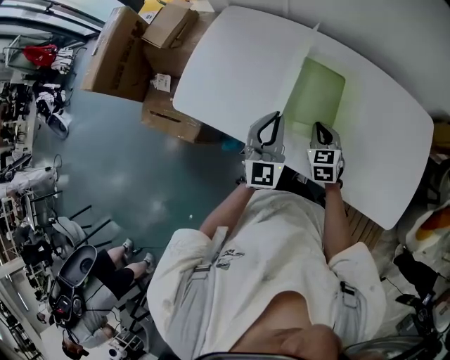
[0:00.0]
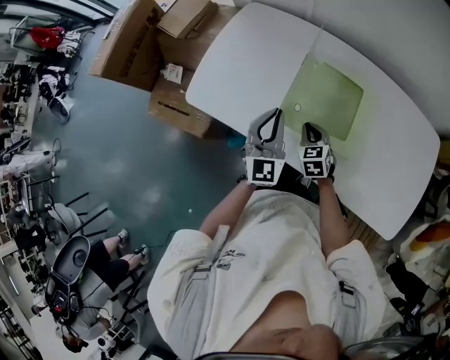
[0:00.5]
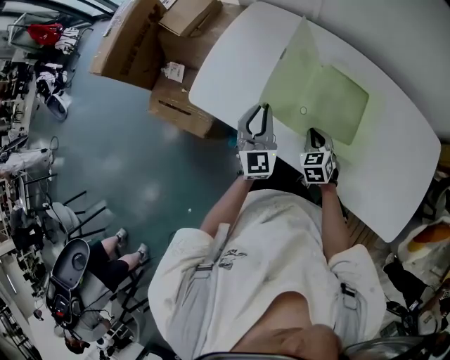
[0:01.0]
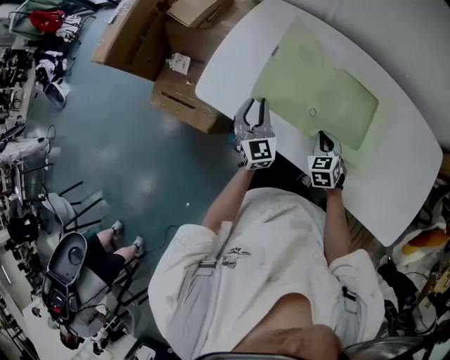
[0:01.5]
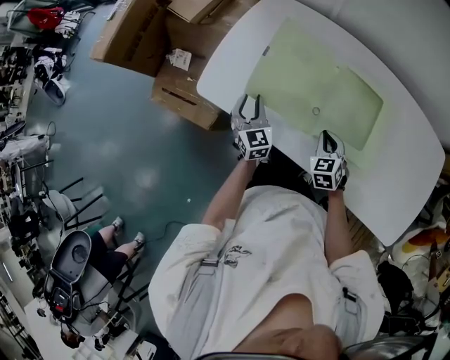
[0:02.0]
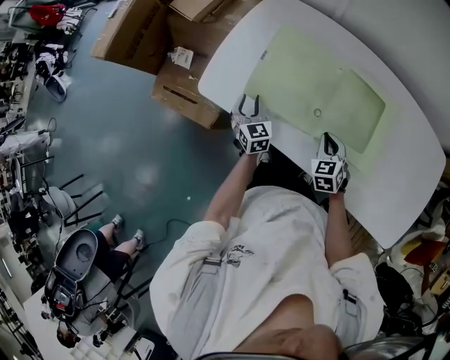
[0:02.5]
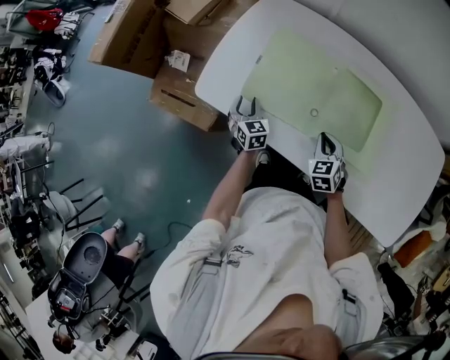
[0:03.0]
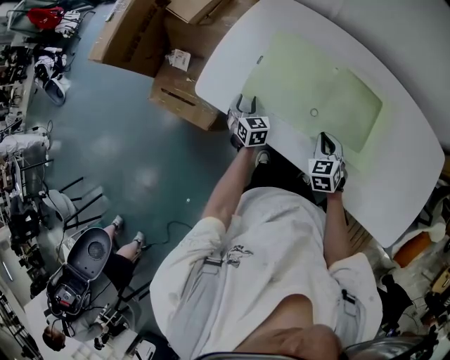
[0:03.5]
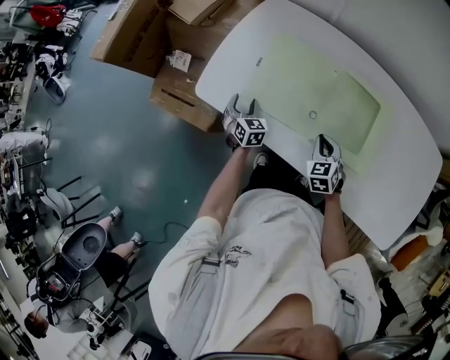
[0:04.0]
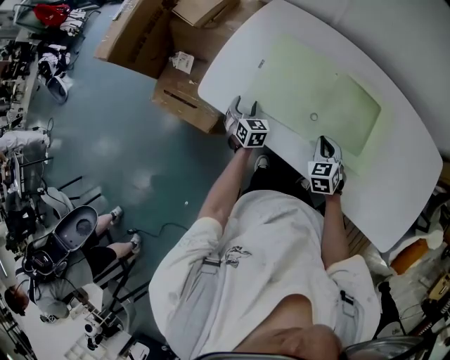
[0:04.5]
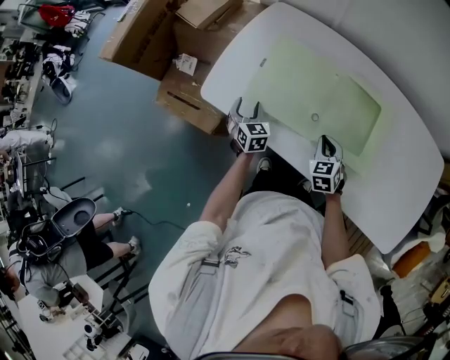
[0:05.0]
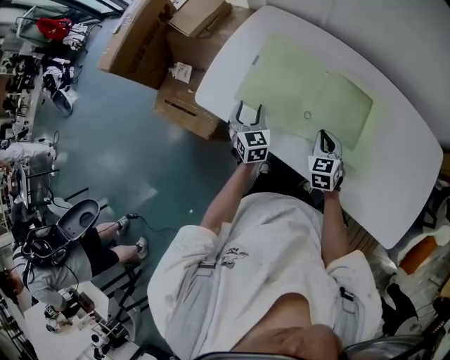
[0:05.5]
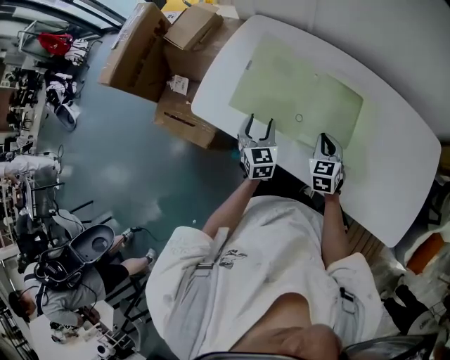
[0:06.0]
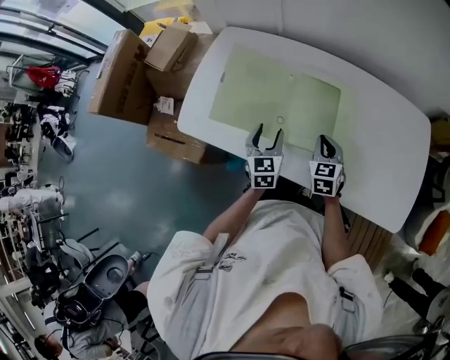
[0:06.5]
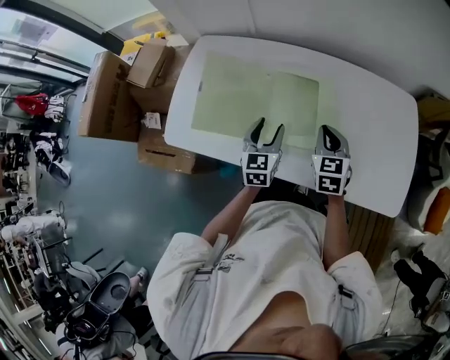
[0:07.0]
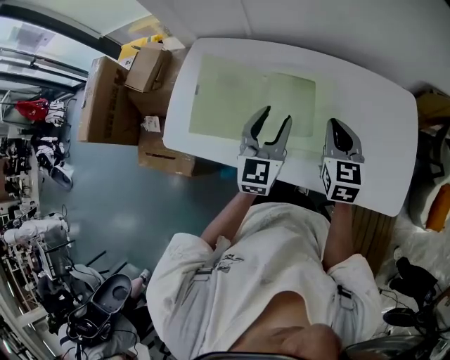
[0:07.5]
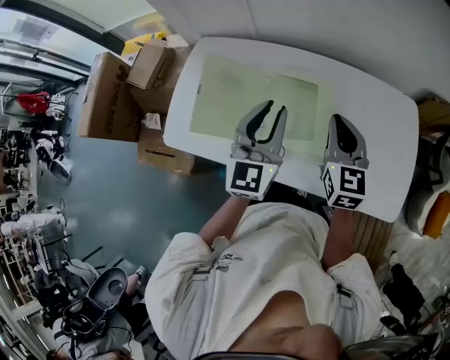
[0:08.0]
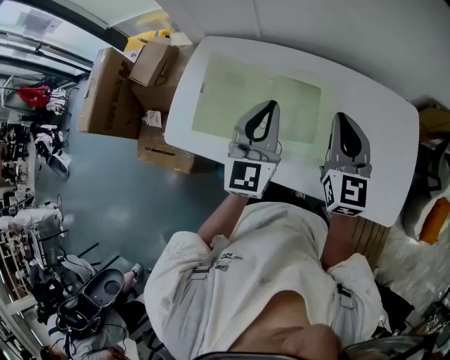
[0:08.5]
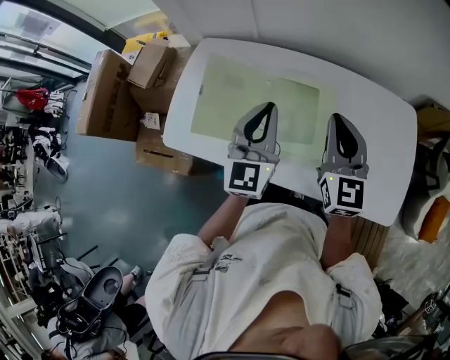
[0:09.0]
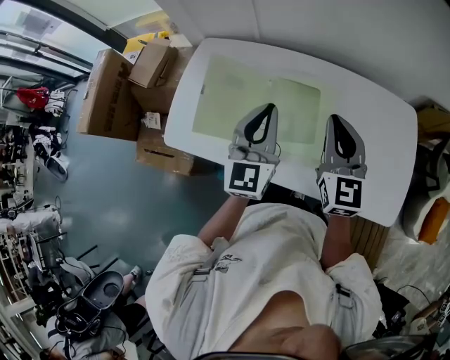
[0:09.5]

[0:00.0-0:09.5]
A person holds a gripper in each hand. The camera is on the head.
0:00.0 to 0:02.0: The left gripper shifts some 25 cm to the left, downward and forward, swivels roughly 30 degrees, and opens up; the right gripper goes some 10 cm to the left.
0:02.0 to 0:04.0: The left gripper heads downward, covering some 10 cm, and opens its fingers.
0:04.0 to 0:05.5: The left gripper is displaced upward by some 10 cm.
0:05.5 to 0:07.5: The left gripper shifts by approximately 35 cm, and swivels about 40 degrees. Meanwhile the right gripper is displaced upward by roughly 20 cm, and changes its angle by approximately 30 degrees.
0:07.5 to 0:09.5: Both grippers move upward, roughly 10 cm. The left gripper closes.

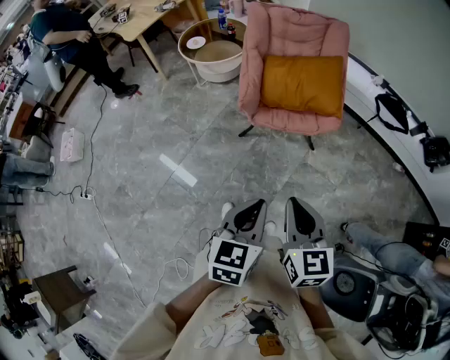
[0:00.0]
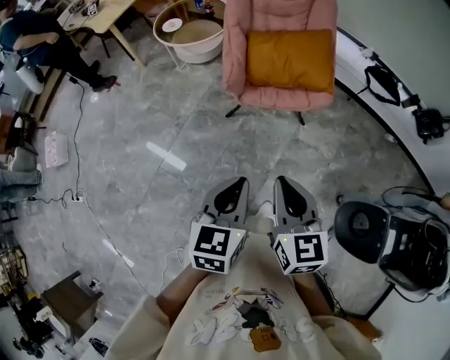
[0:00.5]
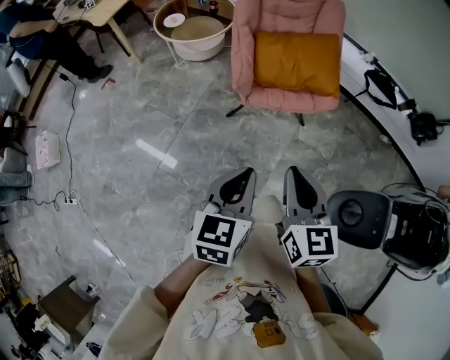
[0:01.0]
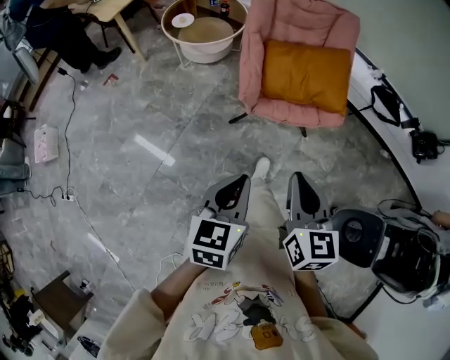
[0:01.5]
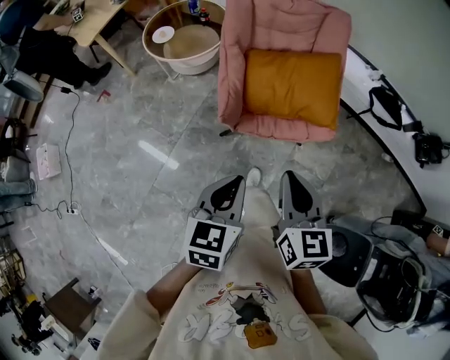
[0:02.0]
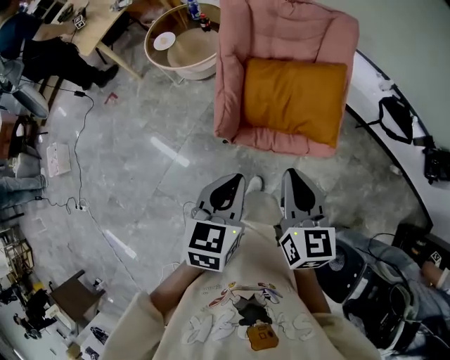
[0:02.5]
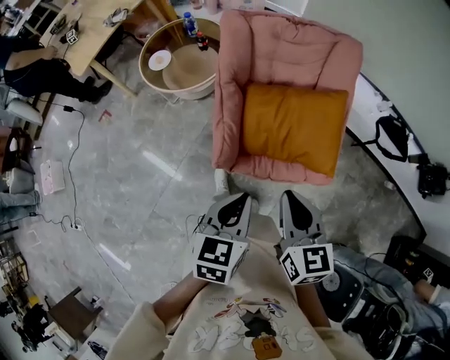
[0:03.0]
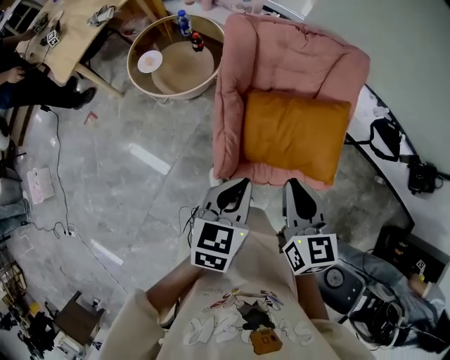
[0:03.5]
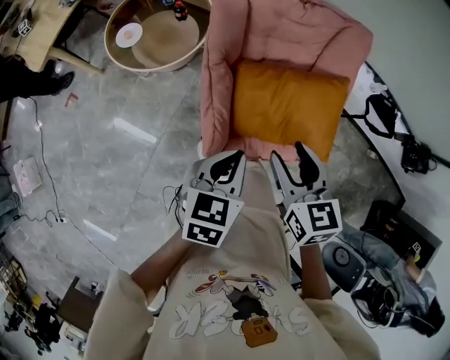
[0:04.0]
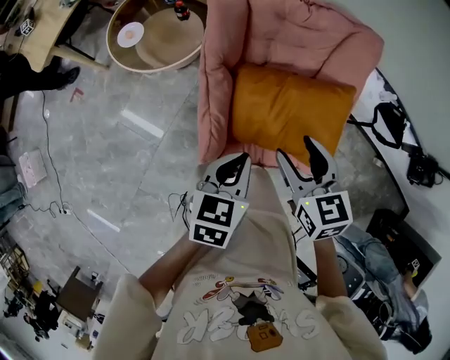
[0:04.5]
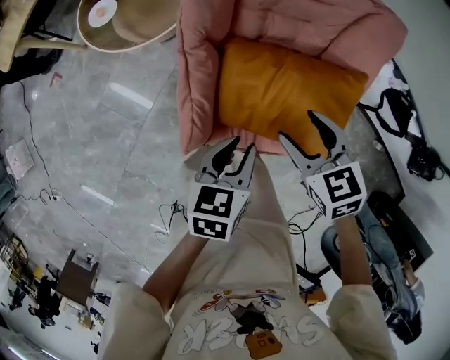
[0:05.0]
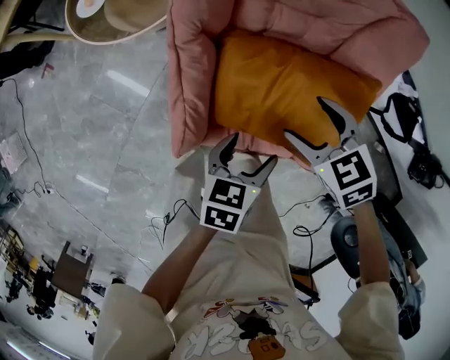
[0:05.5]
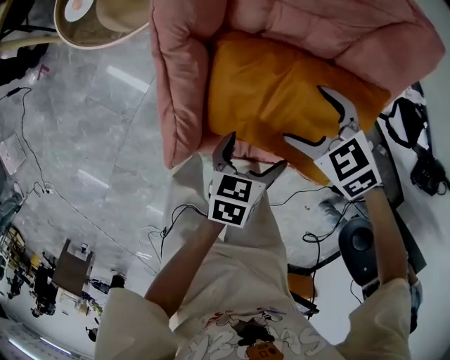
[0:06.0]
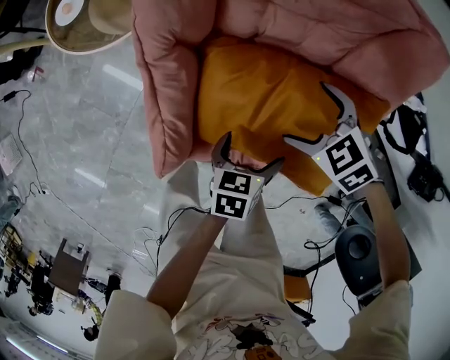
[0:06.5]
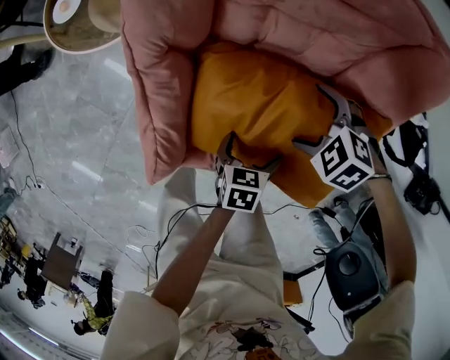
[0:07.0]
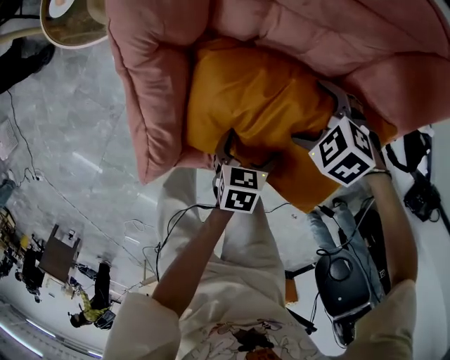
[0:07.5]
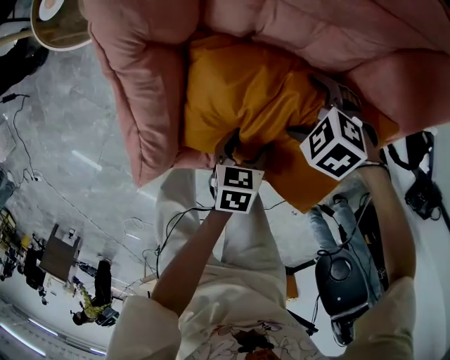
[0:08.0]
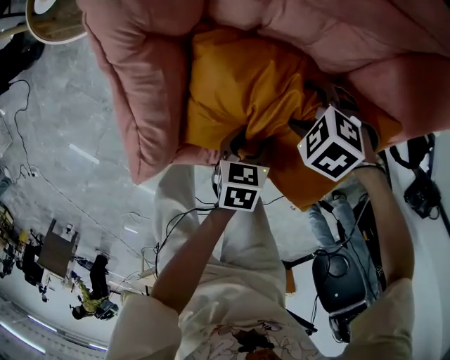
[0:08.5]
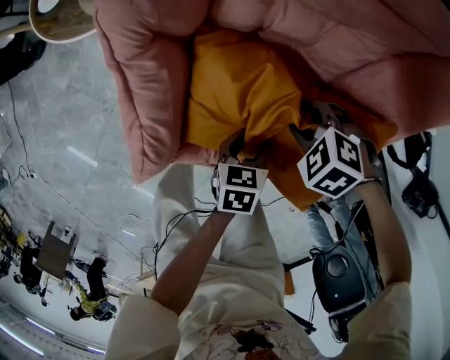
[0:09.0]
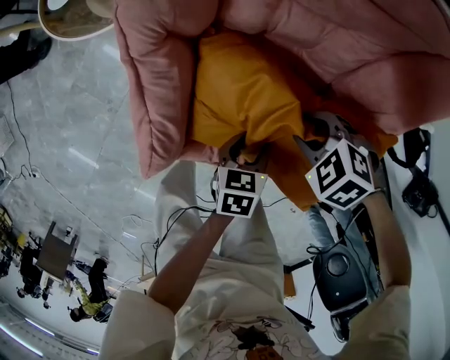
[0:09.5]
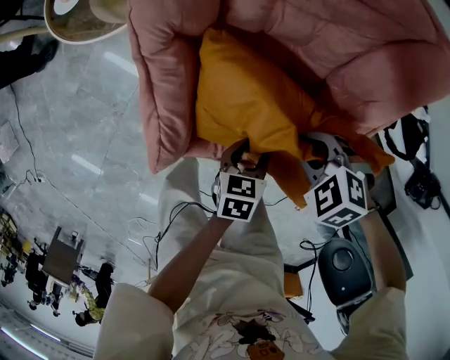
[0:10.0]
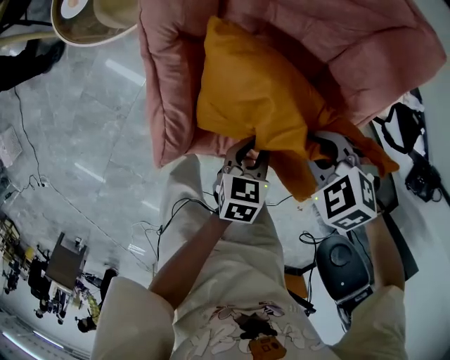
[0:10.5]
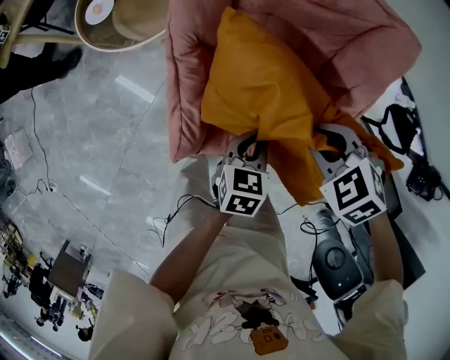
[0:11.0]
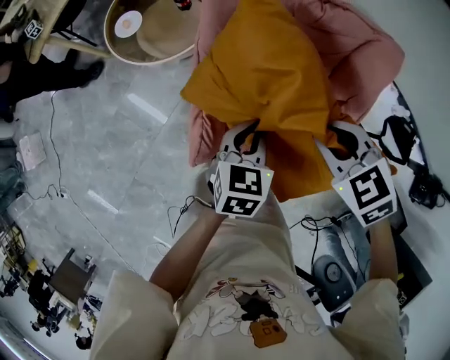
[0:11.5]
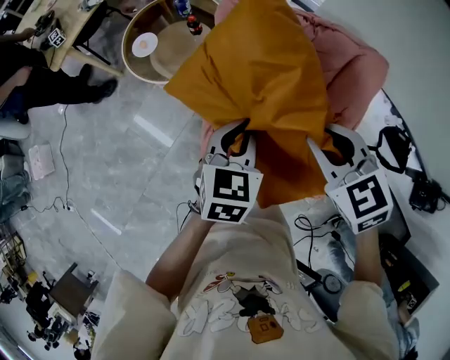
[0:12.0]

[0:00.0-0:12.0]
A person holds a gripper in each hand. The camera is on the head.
0:00.0 to 0:02.0: The two grippers go approximately 25 cm forward.
0:02.0 to 0:04.0: The two grippers go roughly 35 cm forward. The right gripper opens its fingers.
0:04.0 to 0:06.0: The right gripper moves downward, forward and to the right, approximately 35 cm, rotates approximately 50 degrees, and opens its fingers. The left gripper shifts approximately 35 cm downward and to the right, rotates about 30 degrees, and opens.
0:06.0 to 0:08.0: Both grippers travel together downward, about 15 cm. The left gripper closes up; the right gripper swivels about 30 degrees.
0:08.0 to 0:10.0: The left gripper is displaced upward by roughly 5 cm, while the right gripper heads upward, covering approximately 10 cm, and closes up.
0:10.0 to 0:12.0: The grippers both shift upward by about 35 cm. The left gripper changes its angle by approximately 40 degrees. The right gripper swivels about 40 degrees.

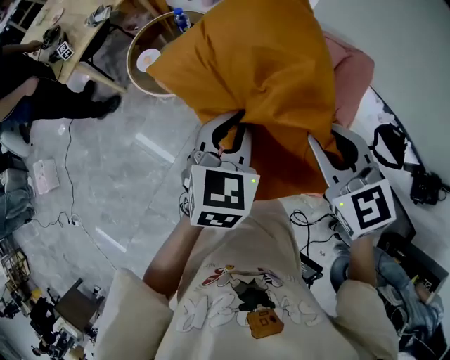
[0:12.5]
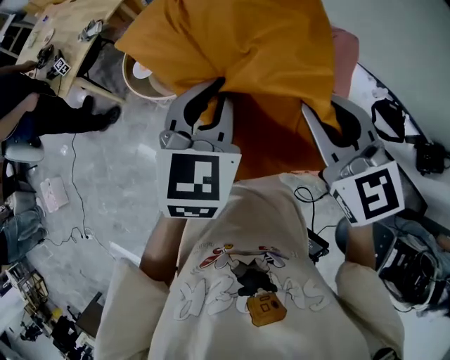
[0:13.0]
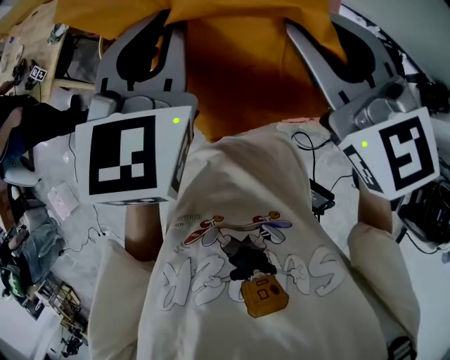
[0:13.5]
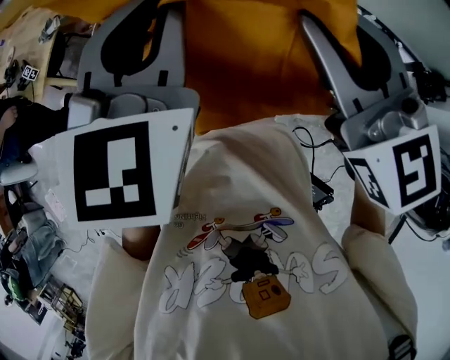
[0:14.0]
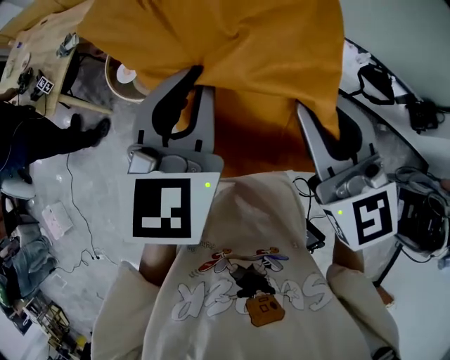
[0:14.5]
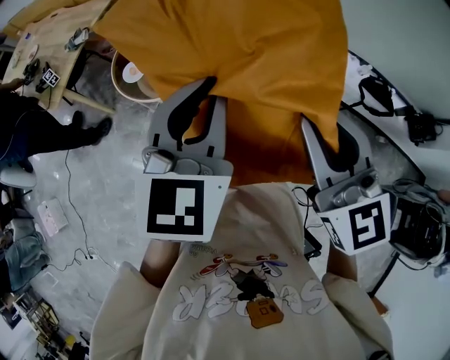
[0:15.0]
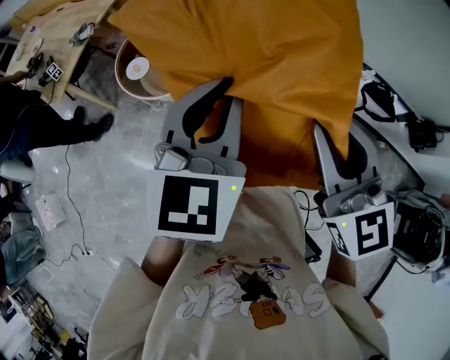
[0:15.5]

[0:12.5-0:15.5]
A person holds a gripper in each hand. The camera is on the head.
0:12.5 to 0:14.0: The right gripper shifts some 15 cm upward, backward and to the left, and turns by some 30 degrees. The left gripper travels upward by approximately 15 cm.
0:14.0 to 0:15.5: The left gripper is displaced downward by some 10 cm. The right gripper heads downward and backward, covering approximately 10 cm.

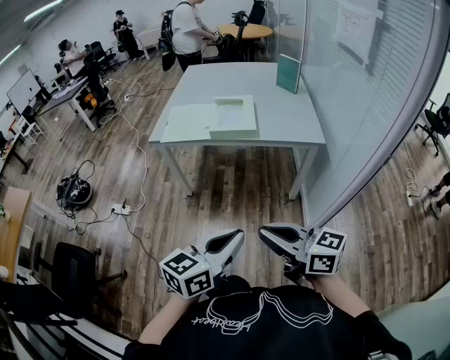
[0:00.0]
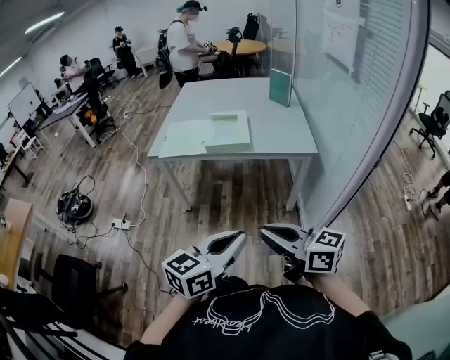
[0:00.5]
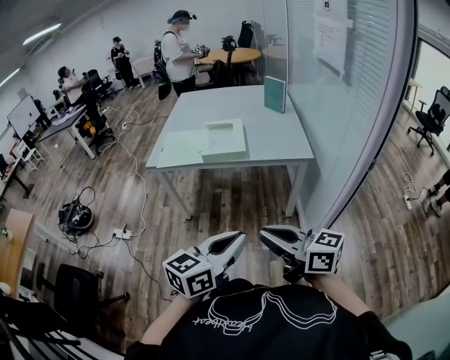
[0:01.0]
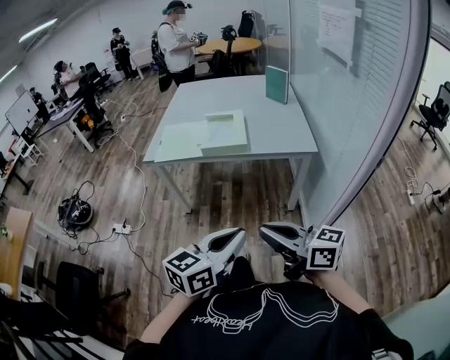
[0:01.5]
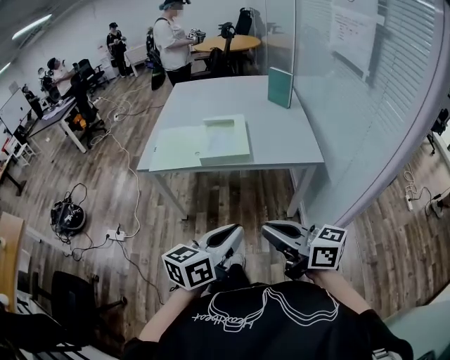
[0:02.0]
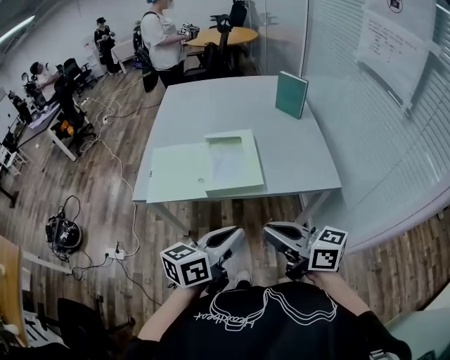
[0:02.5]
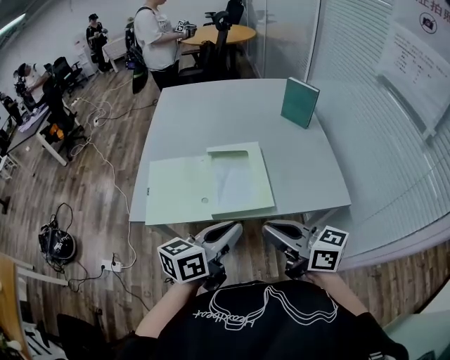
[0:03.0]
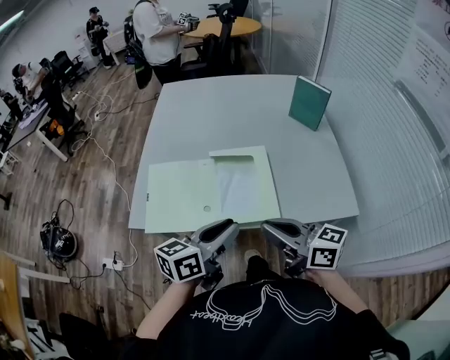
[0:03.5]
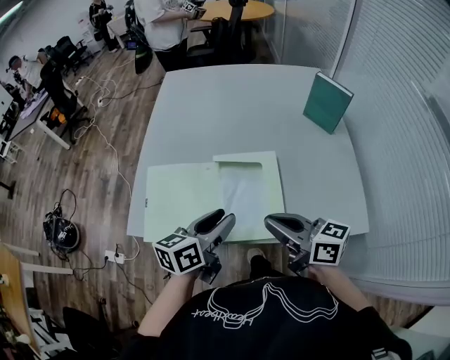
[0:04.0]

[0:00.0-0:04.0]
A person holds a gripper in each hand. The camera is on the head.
0:00.0 to 0:02.0: Both grippers travel together forward, approximately 15 cm.
0:02.0 to 0:04.0: The two grippers travel together, forward, about 50 cm. The left gripper opens up.
